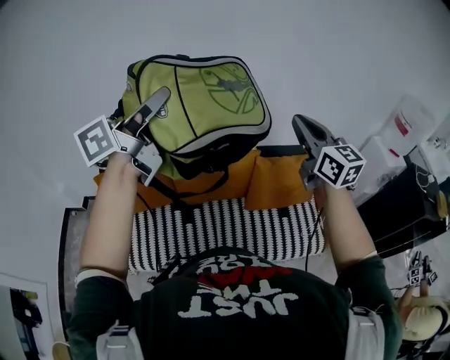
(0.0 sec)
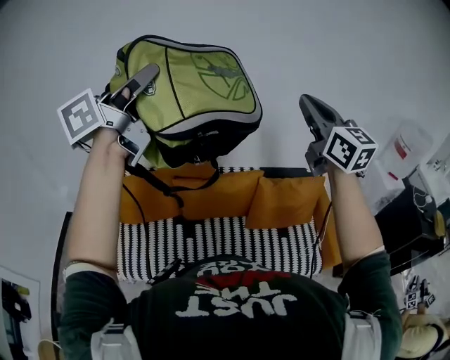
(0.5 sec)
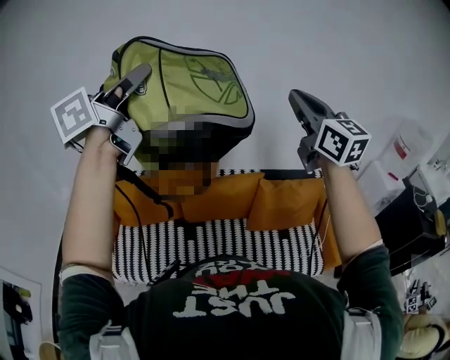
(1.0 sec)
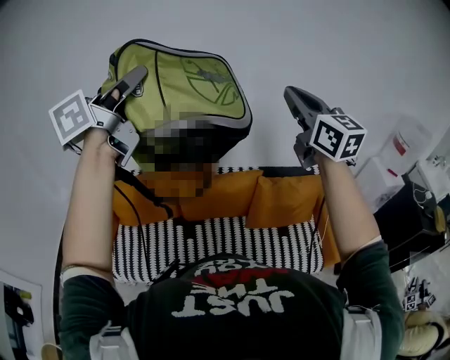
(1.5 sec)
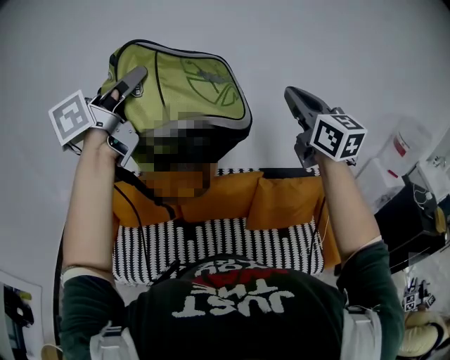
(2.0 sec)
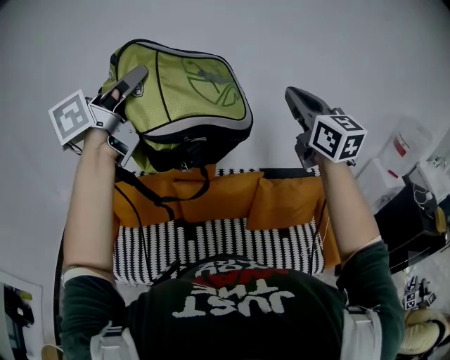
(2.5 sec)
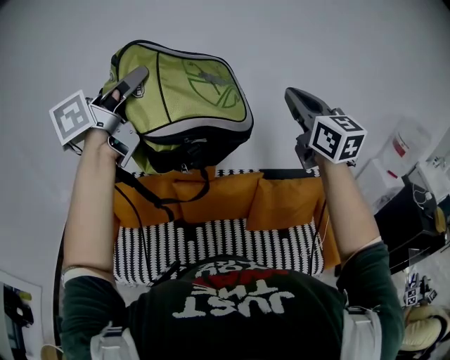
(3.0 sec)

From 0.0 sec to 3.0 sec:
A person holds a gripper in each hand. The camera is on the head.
From 0.0 sec to 1.5 sec: The left gripper travels upward and to the left by about 10 cm, while the right gripper shifts about 15 cm upward.
From 1.5 sec to 3.0 sec: Neither gripper changes place.

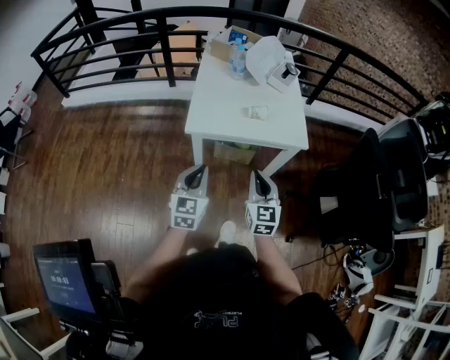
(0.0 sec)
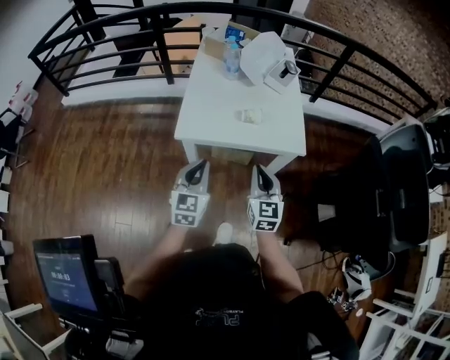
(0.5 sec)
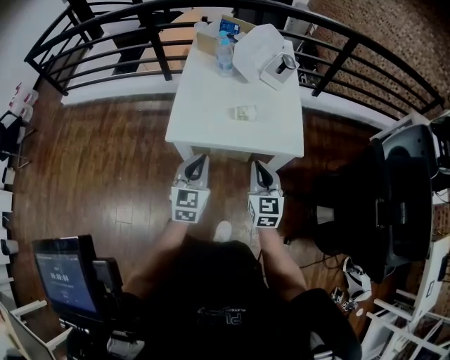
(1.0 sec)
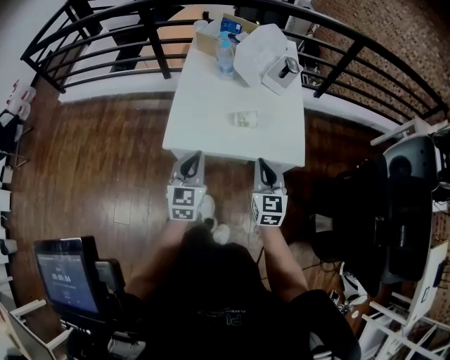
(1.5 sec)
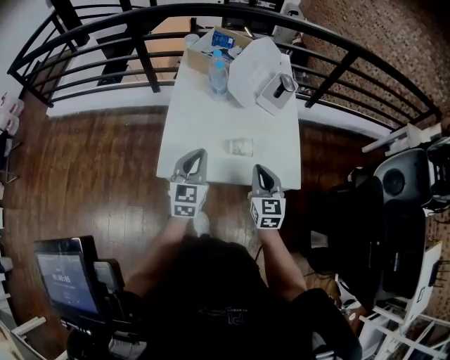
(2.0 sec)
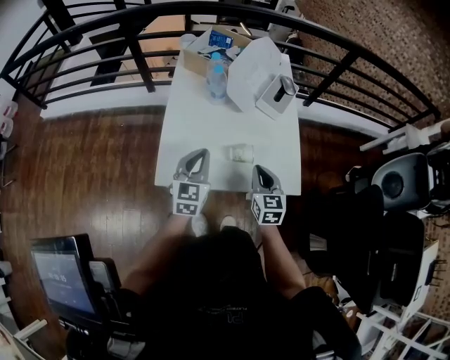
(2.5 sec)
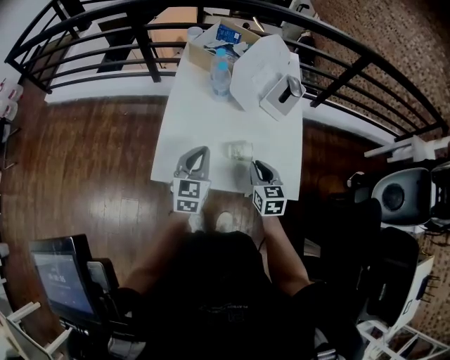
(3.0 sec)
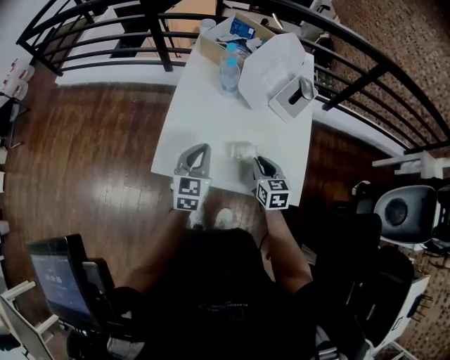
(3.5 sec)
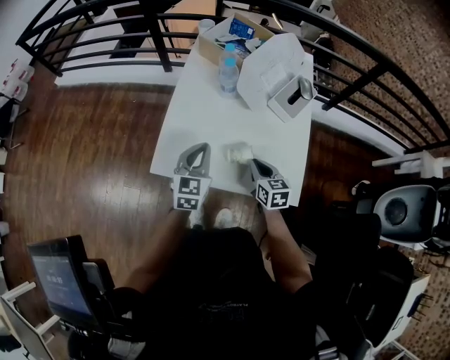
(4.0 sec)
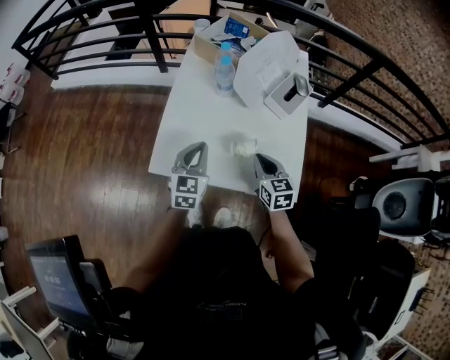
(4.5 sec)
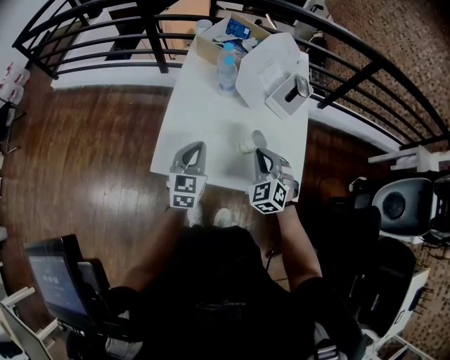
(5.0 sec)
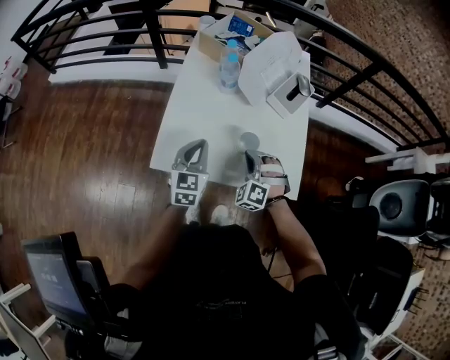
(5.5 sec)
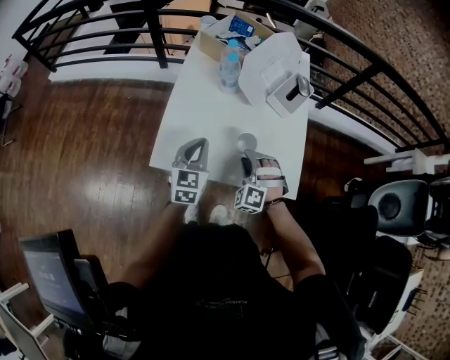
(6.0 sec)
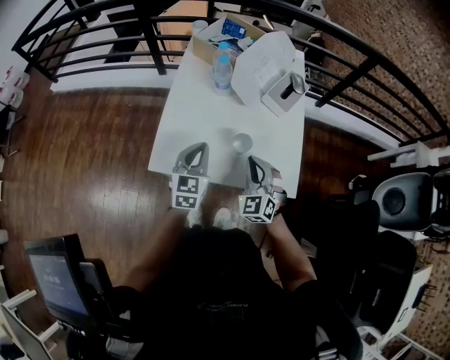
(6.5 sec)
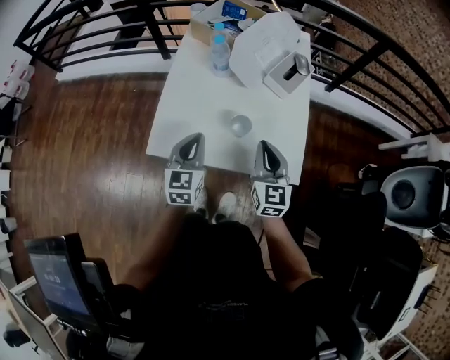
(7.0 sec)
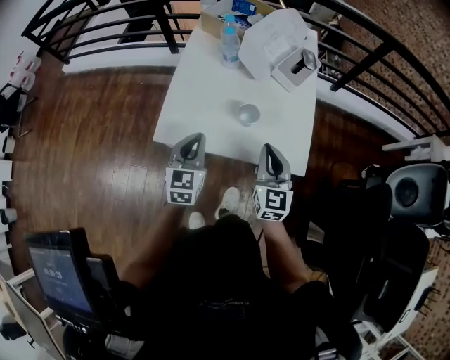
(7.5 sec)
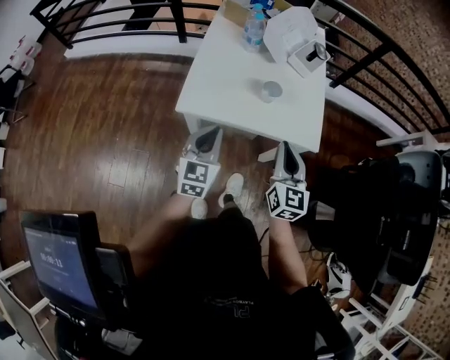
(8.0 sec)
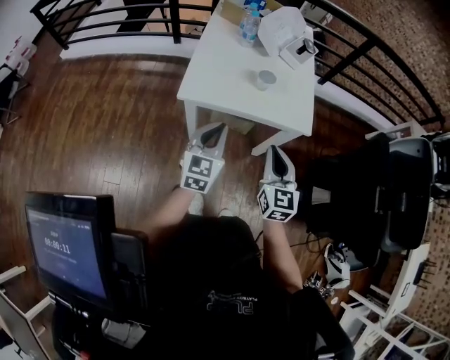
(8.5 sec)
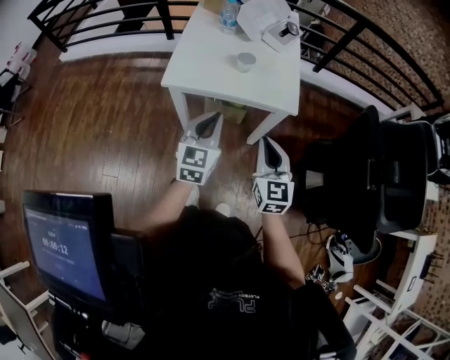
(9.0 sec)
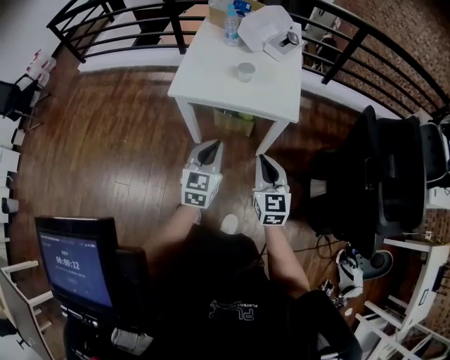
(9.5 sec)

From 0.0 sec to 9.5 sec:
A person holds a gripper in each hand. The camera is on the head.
From 0.0 sec to 2.0 sec: The two grippers go approximately 25 cm forward.
From 2.0 sec to 4.0 sec: The right gripper travels downward and forward by some 10 cm, and rotates roughly 30 degrees. The left gripper moves forward, approximately 5 cm.
From 4.0 sec to 5.5 sec: The right gripper rolls counterclockwise, seen from behind, by roughly 80 degrees.
From 5.5 sec to 7.5 sec: The right gripper travels upward and backward by roughly 15 cm, rotates around the line of its fingers by some 70 degrees, clockwise from behind, and opens and closes again, while the left gripper heads backward, covering about 10 cm.
From 7.5 sec to 9.5 sec: Both grippers travel together backward, roughly 30 cm.

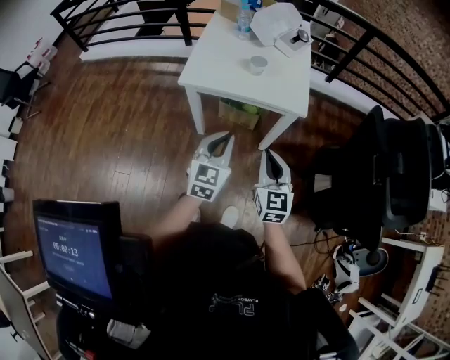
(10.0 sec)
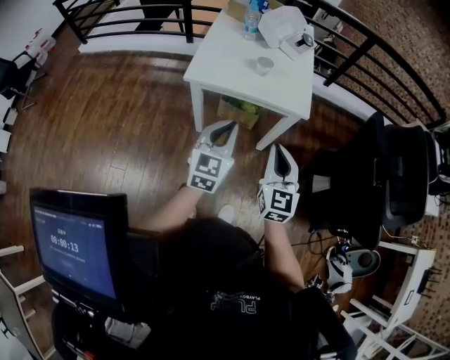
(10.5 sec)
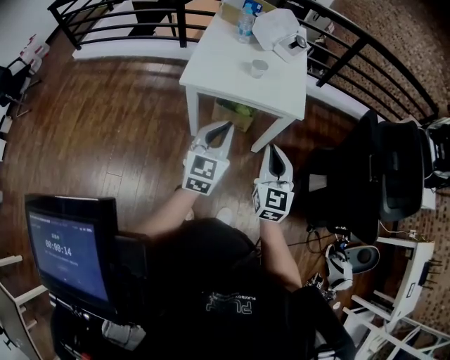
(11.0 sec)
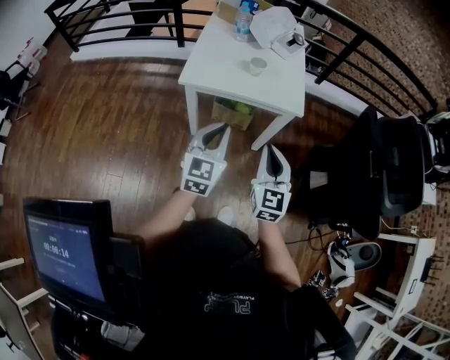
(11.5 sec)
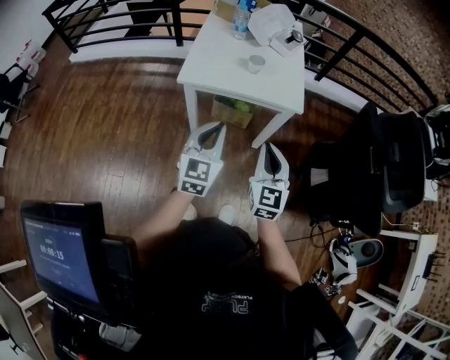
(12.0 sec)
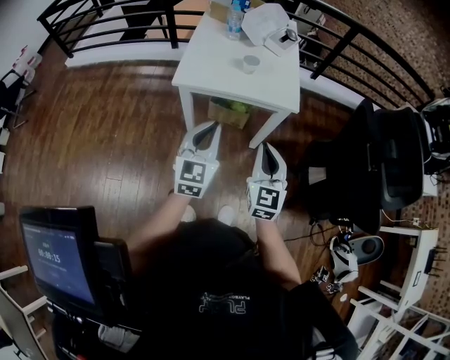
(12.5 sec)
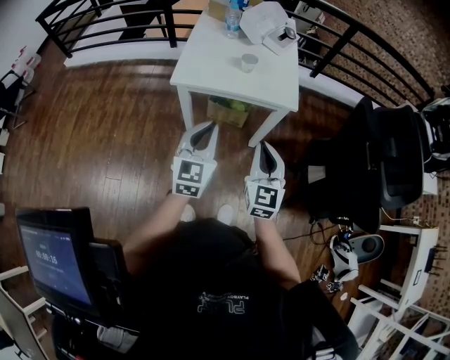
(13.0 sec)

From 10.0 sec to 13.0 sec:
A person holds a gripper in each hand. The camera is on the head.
From 10.0 sec to 11.5 sec: The left gripper shifts by about 5 cm.
From 11.5 sec to 13.0 sec: The grippers make only small movements.

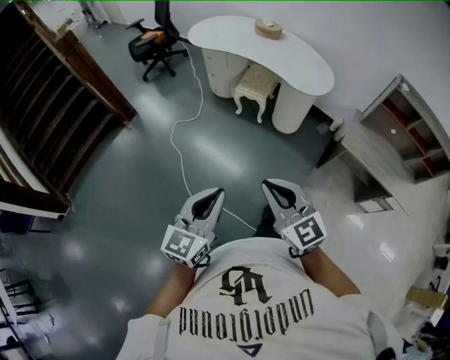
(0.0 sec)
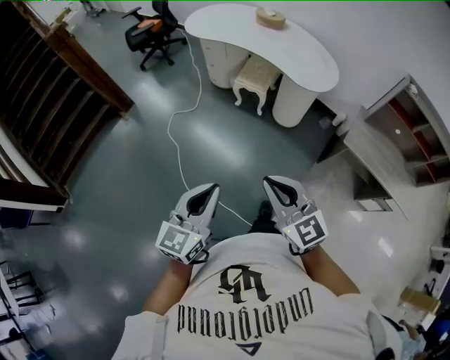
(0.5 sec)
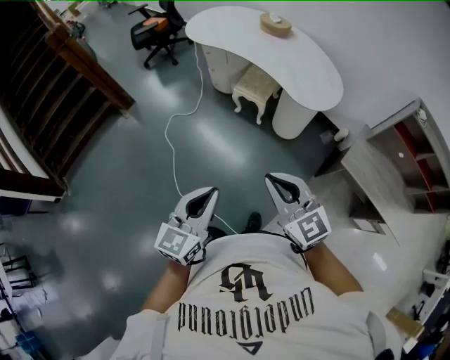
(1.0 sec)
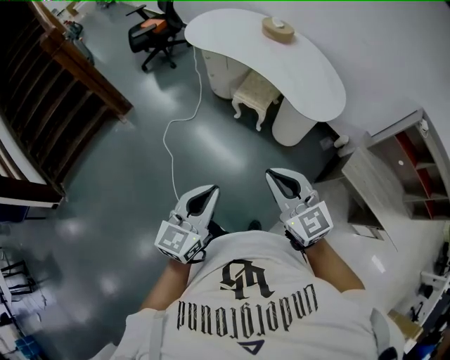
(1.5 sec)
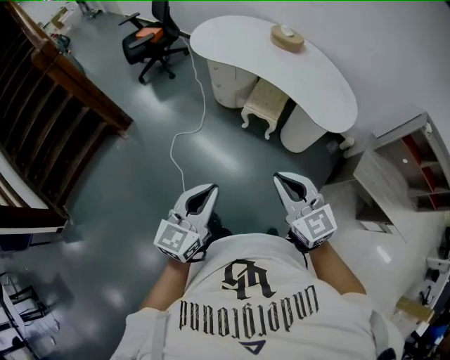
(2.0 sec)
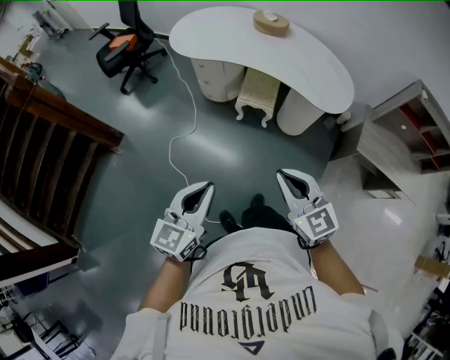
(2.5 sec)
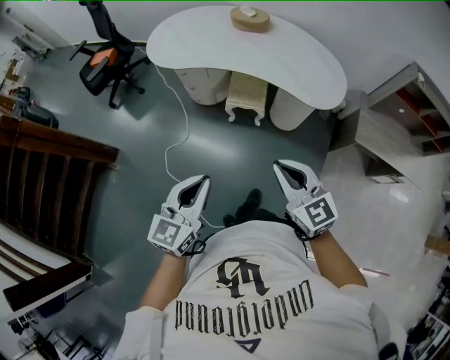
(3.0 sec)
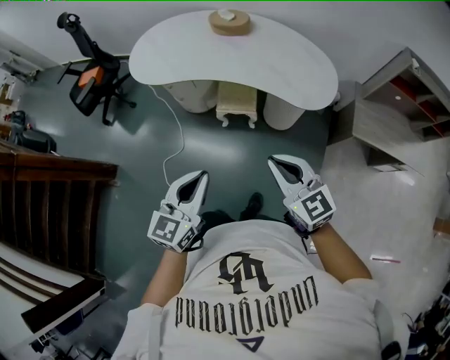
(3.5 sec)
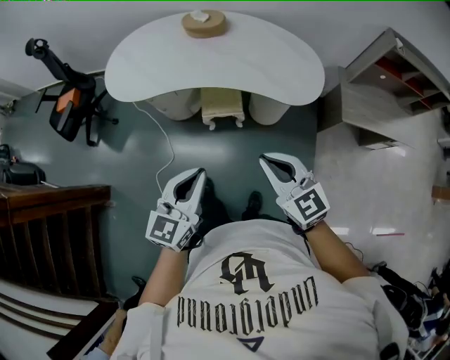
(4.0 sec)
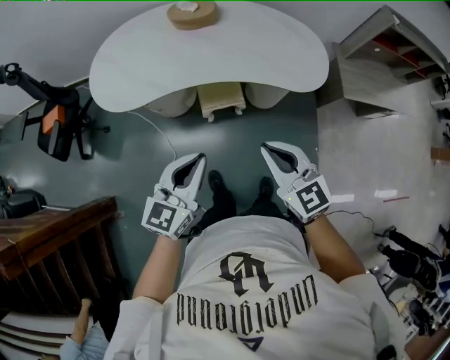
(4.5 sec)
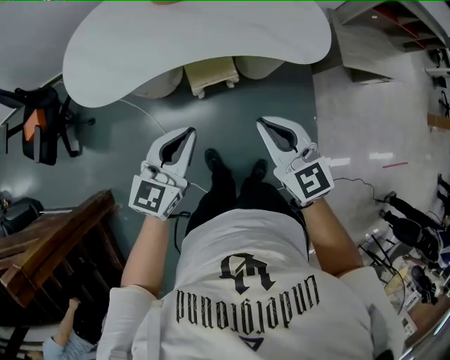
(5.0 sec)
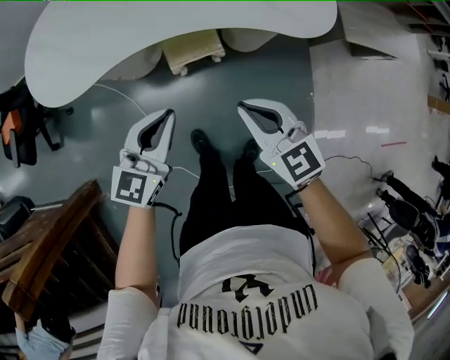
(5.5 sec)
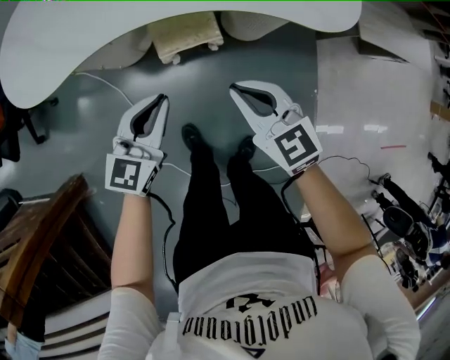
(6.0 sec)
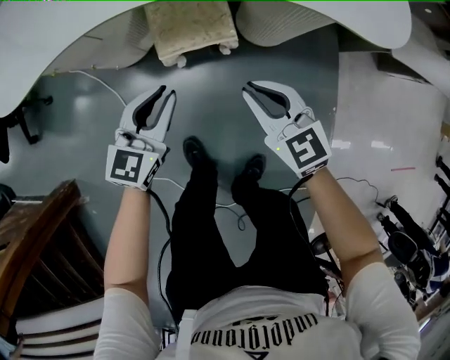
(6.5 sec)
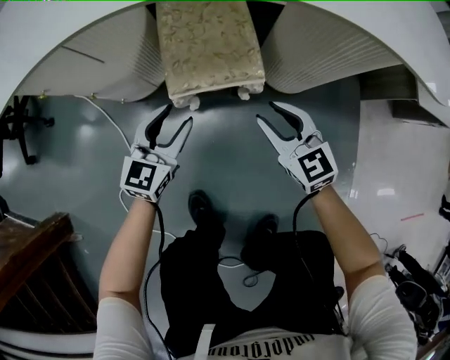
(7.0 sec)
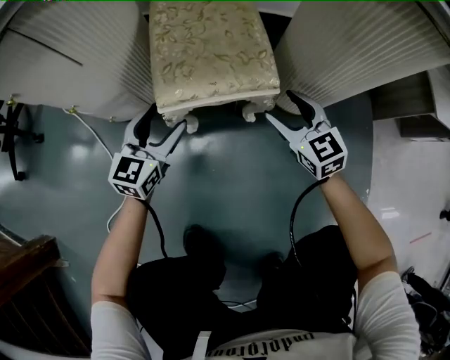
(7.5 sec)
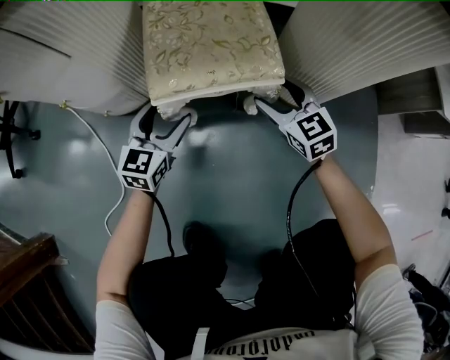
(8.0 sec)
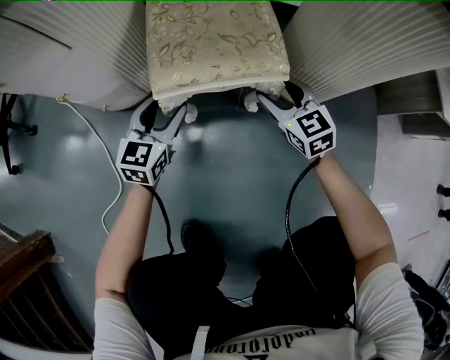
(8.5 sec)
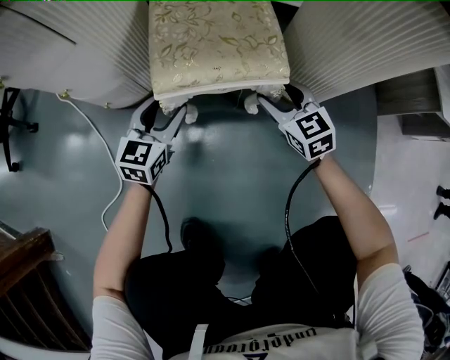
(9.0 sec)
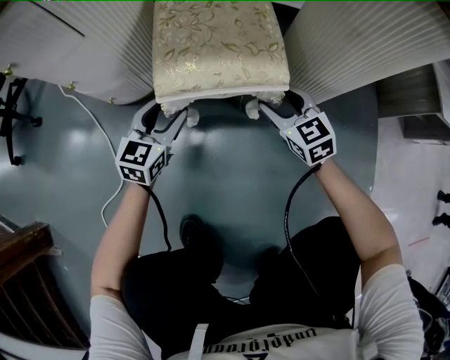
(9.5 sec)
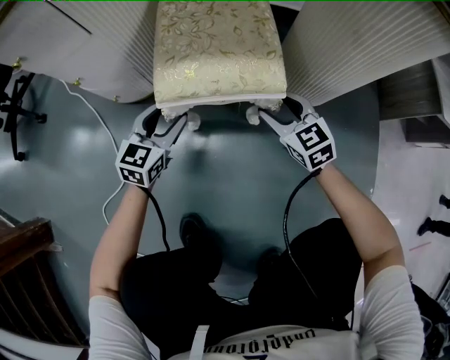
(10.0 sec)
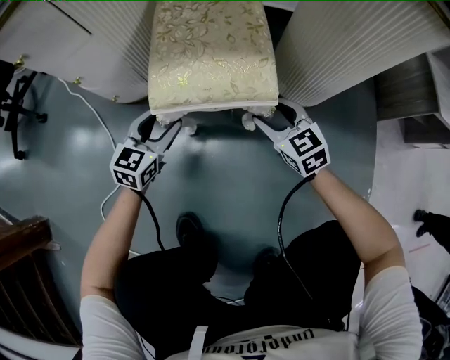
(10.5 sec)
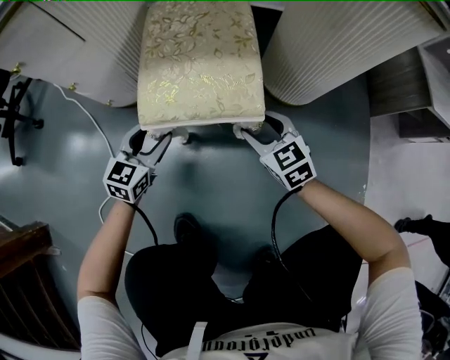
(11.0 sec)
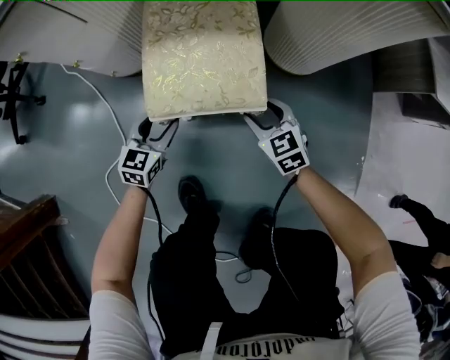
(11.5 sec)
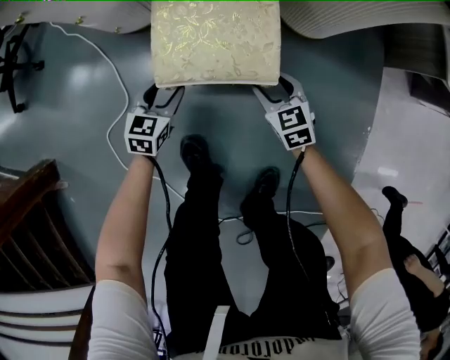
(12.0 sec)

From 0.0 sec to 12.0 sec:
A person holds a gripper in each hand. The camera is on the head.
From 0.0 sec to 2.0 sec: The grippers both shift forward by about 35 cm.
From 2.0 sec to 4.0 sec: The right gripper ends up approximately 25 cm from where it was, and turns by some 30 degrees. Meanwhile the left gripper ends up about 30 cm from where it was, and turns by roughly 30 degrees.
From 4.0 sec to 6.0 sec: The two grippers go some 35 cm downward and forward.
From 6.0 sec to 8.0 sec: Both grippers move downward, some 50 cm. The right gripper opens its fingers. Meanwhile the left gripper opens.
From 8.0 sec to 10.0 sec: There are only small adjustments of the grippers.
From 10.0 sec to 12.0 sec: The left gripper swivels some 20 degrees.
